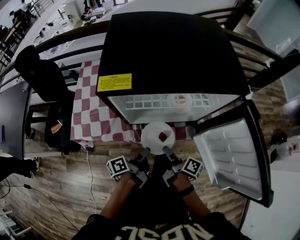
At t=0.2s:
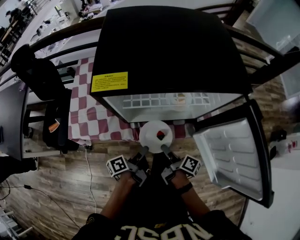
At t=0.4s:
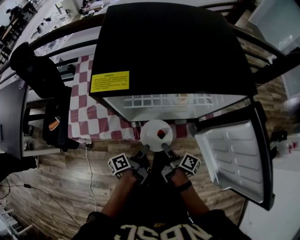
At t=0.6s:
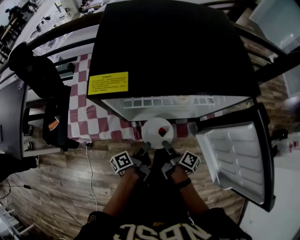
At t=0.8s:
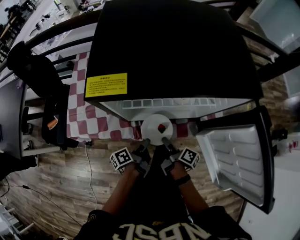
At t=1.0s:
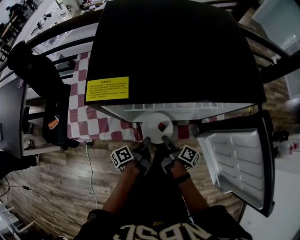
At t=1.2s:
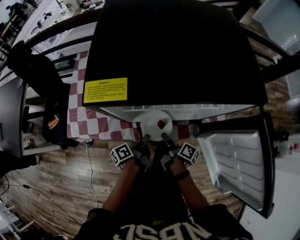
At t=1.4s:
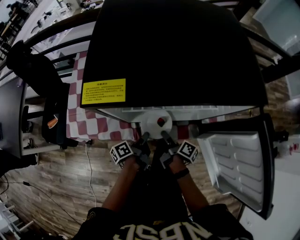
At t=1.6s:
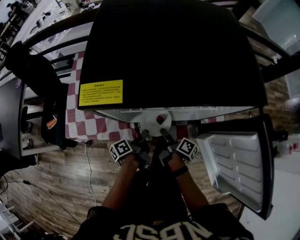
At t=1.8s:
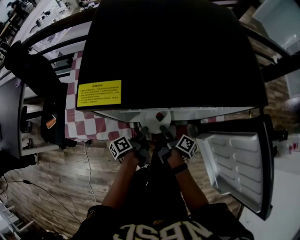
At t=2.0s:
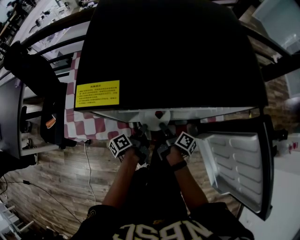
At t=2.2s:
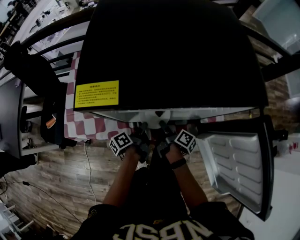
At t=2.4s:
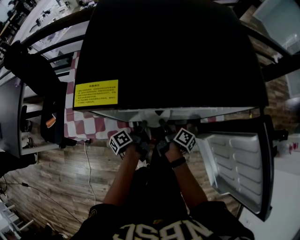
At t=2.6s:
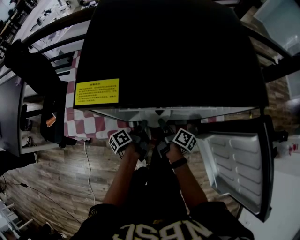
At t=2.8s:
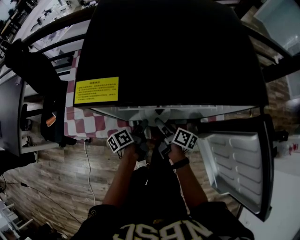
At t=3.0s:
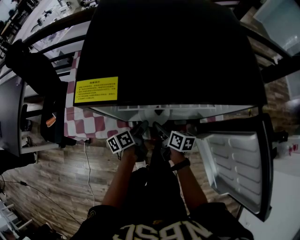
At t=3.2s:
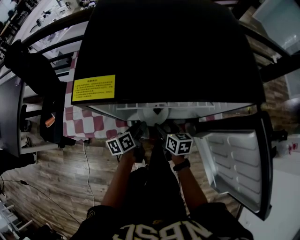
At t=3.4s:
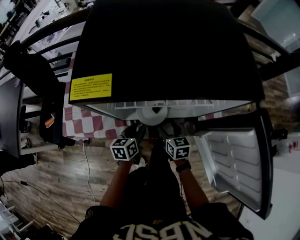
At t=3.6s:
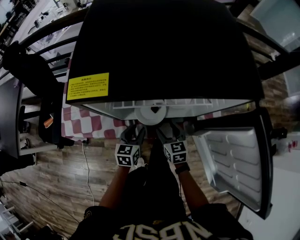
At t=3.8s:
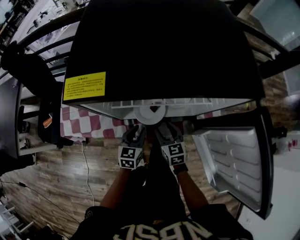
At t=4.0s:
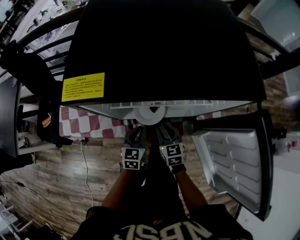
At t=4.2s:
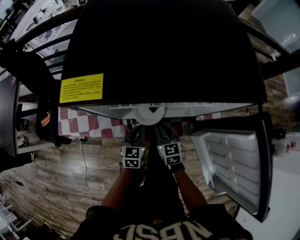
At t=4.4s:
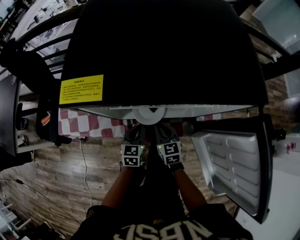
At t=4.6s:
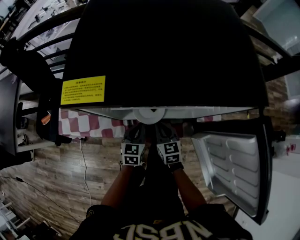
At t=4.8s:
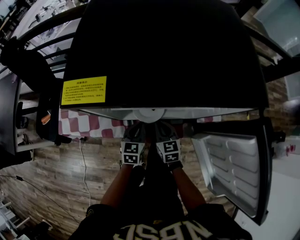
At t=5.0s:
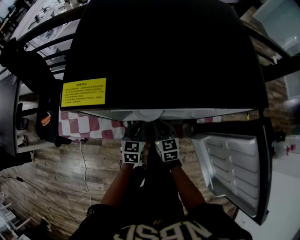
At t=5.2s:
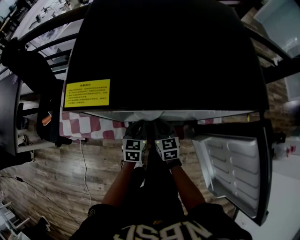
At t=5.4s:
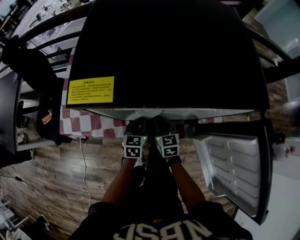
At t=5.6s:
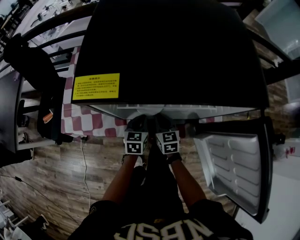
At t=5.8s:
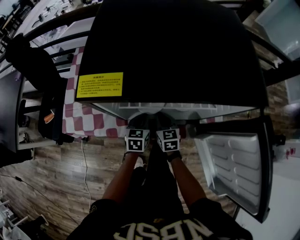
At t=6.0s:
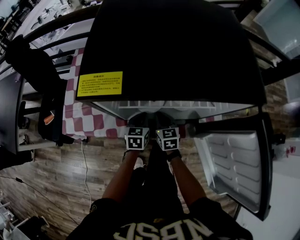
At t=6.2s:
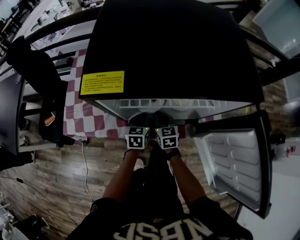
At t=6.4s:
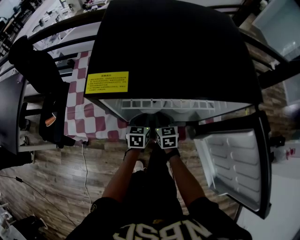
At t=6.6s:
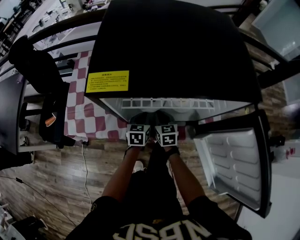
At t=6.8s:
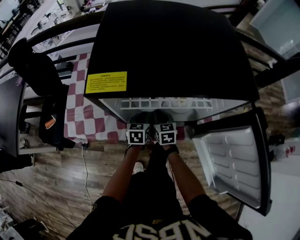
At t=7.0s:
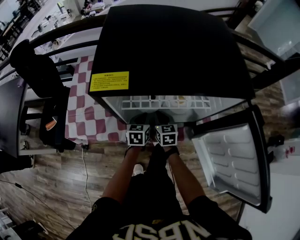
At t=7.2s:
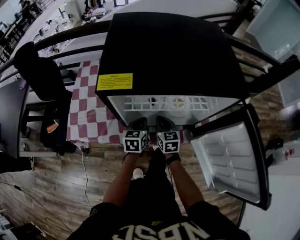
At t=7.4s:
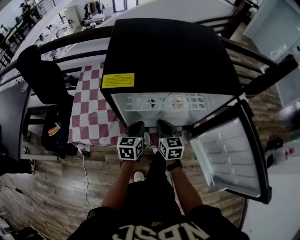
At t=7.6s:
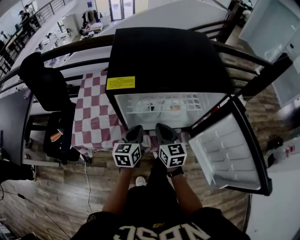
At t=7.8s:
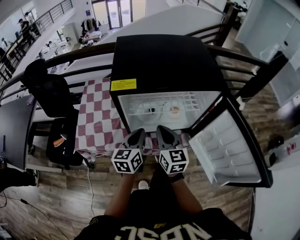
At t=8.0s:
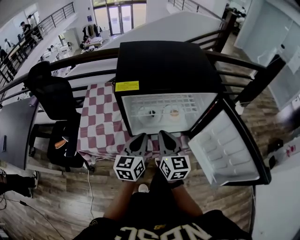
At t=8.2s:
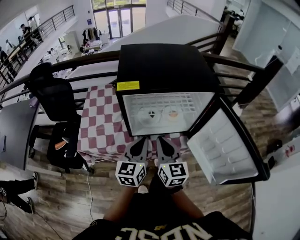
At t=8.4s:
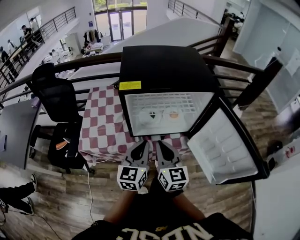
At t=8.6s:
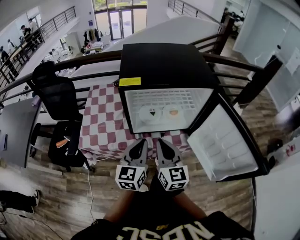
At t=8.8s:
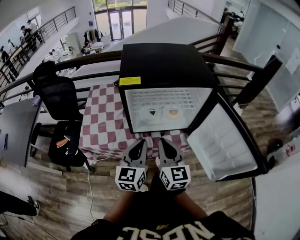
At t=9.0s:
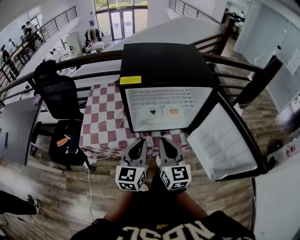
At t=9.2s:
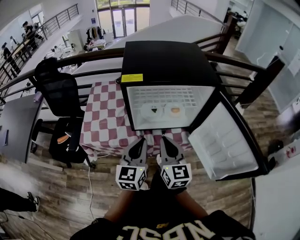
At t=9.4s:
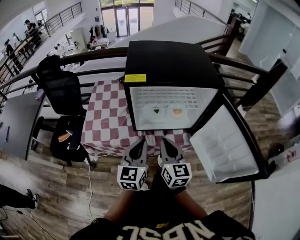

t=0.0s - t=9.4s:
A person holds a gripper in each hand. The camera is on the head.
t=0.0s - t=1.6s: The right gripper is displaced forward and downward by roughly 15 cm; the left gripper shifts about 15 cm downward and forward.
t=1.6s - t=3.2s: The left gripper rotates approximately 30 degrees, and opens its fingers. The right gripper rotates around the line of its fingers by approximately 50 degrees, counterclockwise from behind, and opens up.
t=3.2s - t=4.8s: The right gripper turns by roughly 30 degrees, and closes up; the left gripper rolls clockwise, seen from behind, by about 50 degrees, and closes its fingers.
t=4.8s - t=6.2s: The right gripper ends up about 5 cm from where it was.
t=6.2s - t=7.8s: Both grippers move upward, about 25 cm. The right gripper swivels roughly 20 degrees. The left gripper rotates about 20 degrees.
t=7.8s - t=9.4s: The left gripper heads backward and upward, covering about 15 cm, while the right gripper is displaced backward by some 10 cm.

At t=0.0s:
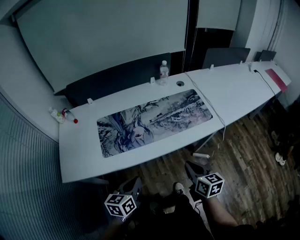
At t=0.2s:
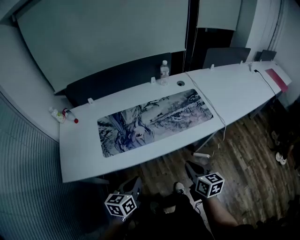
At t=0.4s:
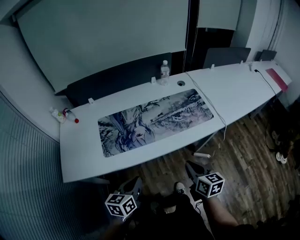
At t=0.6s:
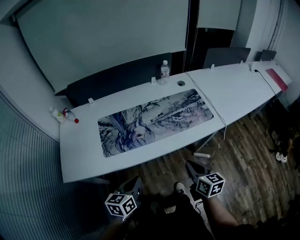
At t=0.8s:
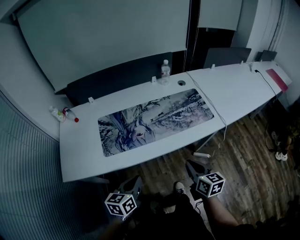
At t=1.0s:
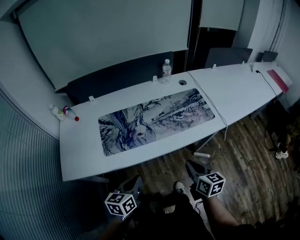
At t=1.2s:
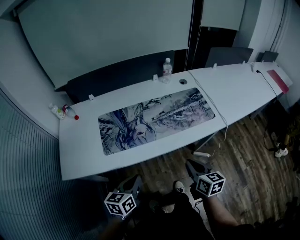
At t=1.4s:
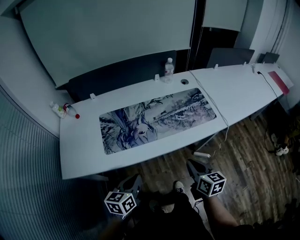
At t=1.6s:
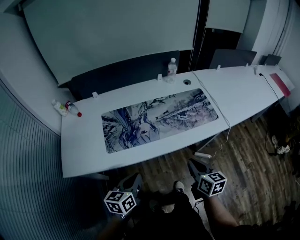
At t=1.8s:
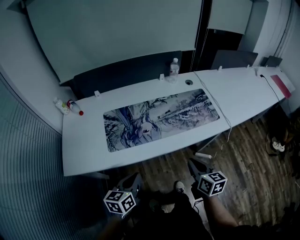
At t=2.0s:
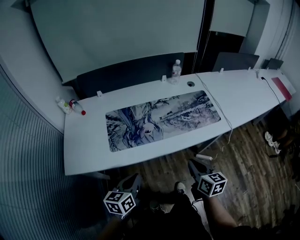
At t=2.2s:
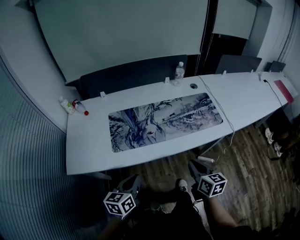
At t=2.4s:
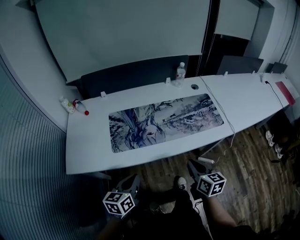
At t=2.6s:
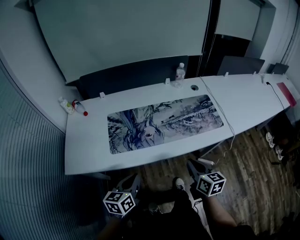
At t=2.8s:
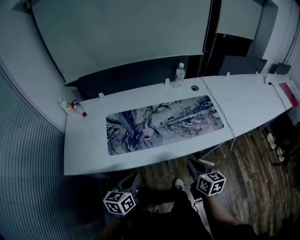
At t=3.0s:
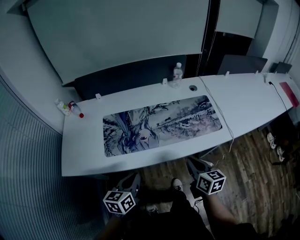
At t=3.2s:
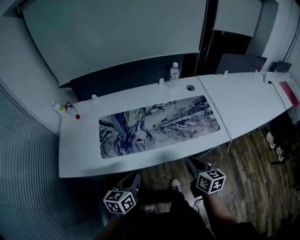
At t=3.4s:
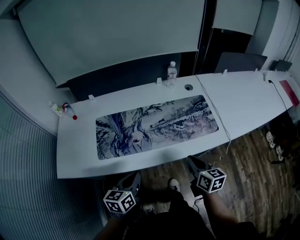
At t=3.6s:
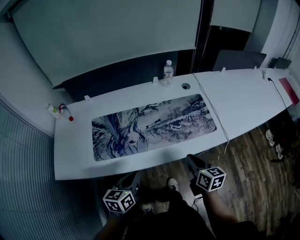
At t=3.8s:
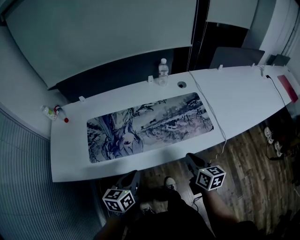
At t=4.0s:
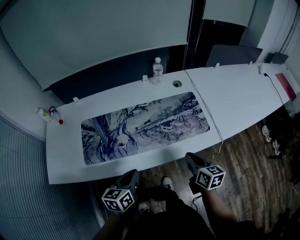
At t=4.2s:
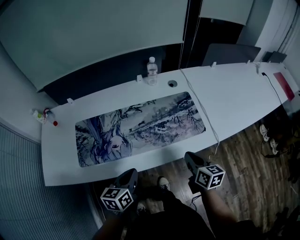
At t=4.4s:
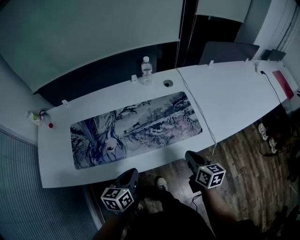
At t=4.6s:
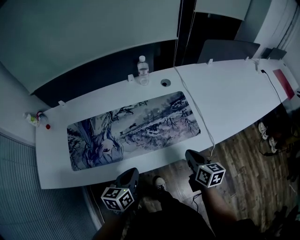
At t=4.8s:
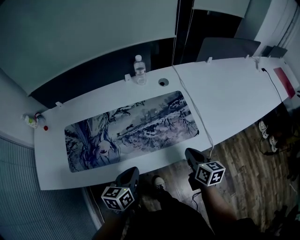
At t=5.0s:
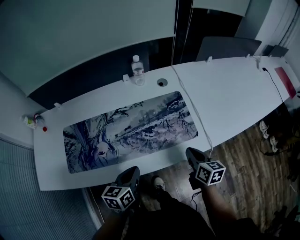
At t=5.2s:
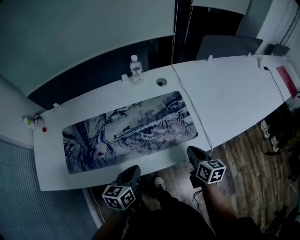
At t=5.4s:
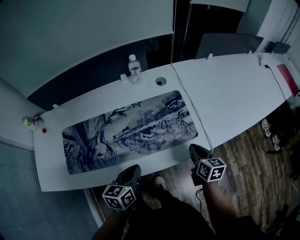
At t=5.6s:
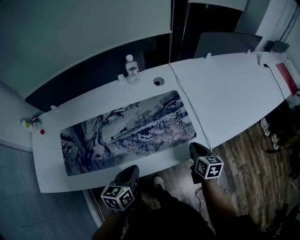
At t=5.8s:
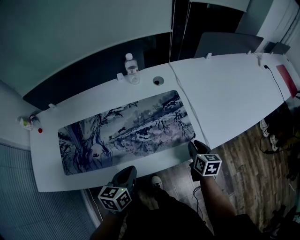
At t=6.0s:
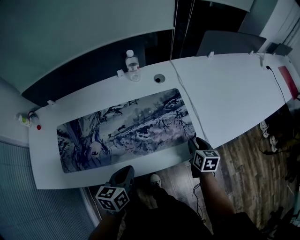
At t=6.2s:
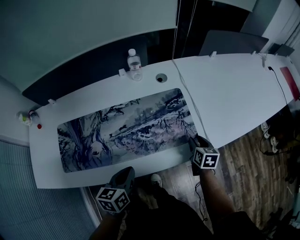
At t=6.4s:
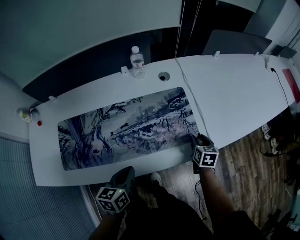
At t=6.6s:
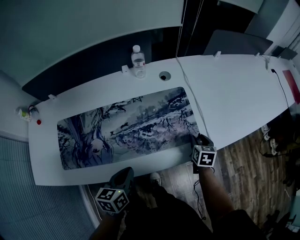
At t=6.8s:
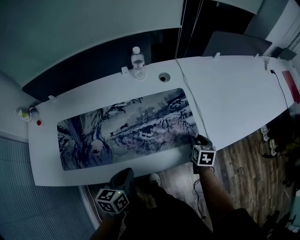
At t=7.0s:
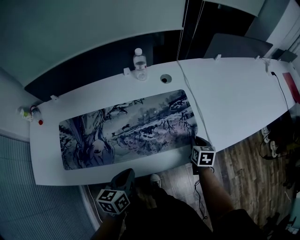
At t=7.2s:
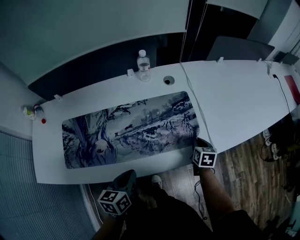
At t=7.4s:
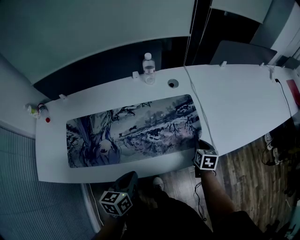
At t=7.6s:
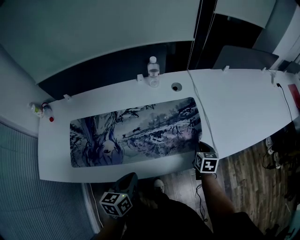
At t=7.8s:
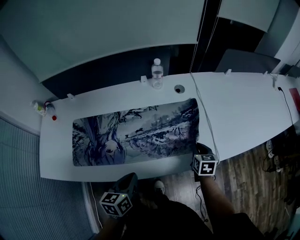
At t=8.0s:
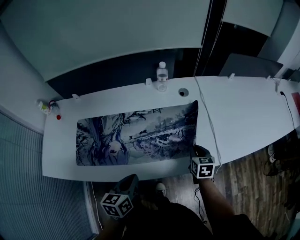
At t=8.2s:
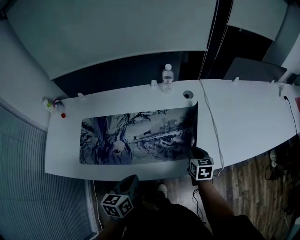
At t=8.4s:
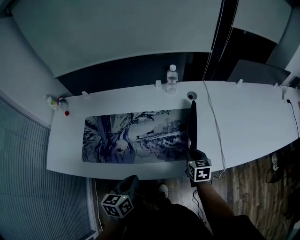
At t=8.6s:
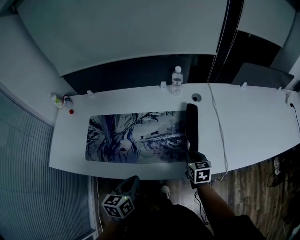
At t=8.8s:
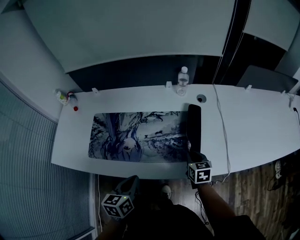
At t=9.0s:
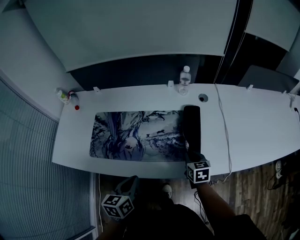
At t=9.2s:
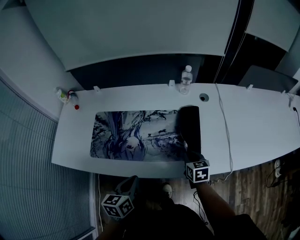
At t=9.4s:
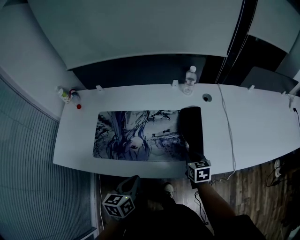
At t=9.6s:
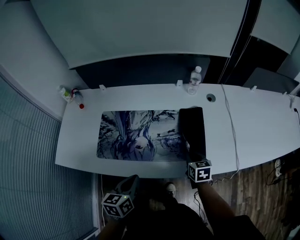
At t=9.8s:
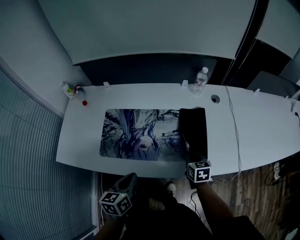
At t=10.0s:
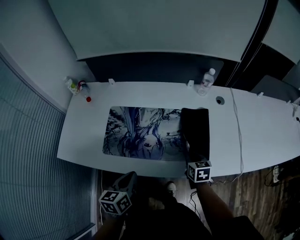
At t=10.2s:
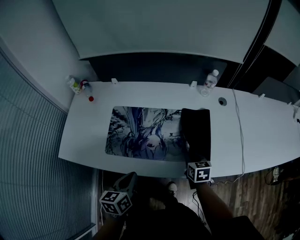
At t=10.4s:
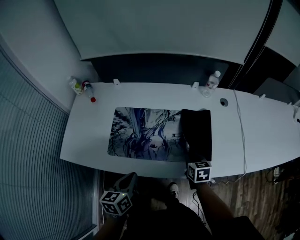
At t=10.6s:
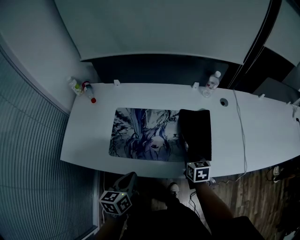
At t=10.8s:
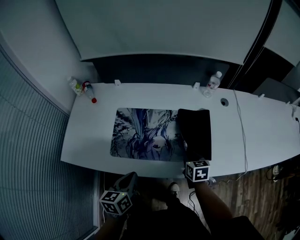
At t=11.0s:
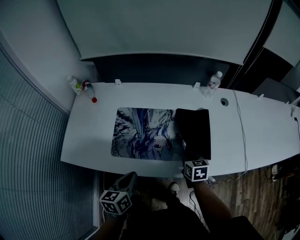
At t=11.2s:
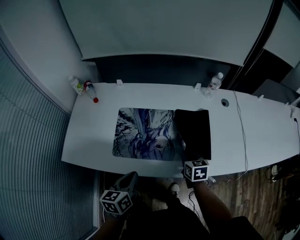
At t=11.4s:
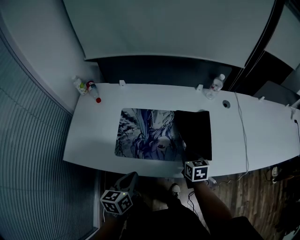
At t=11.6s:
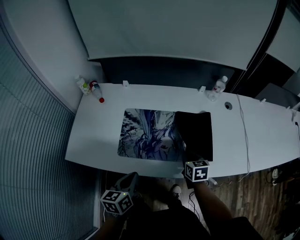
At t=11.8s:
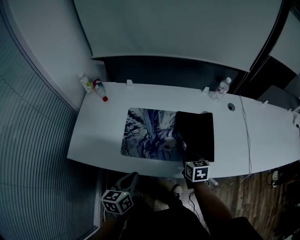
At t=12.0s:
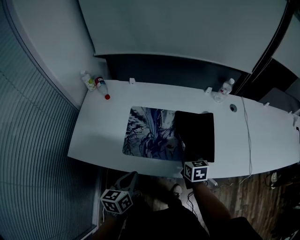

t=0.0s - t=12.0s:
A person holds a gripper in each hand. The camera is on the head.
t=0.0s - t=1.6s: The grippers move only a little.
t=1.6s - t=3.0s: The right gripper moves forward, about 5 cm.
t=3.0s - t=4.4s: Both grippers move to the right and forward, some 20 cm.
t=4.4s - t=6.0s: The right gripper moves forward, to the right and downward, approximately 20 cm, and opens. The left gripper travels forward and to the right by about 10 cm.
t=6.0s - t=7.6s: The right gripper closes its fingers.
t=7.6s - t=9.0s: The left gripper is displaced to the left by some 5 cm; the right gripper moves to the left, about 15 cm, and swivels roughly 20 degrees.
t=9.0s - t=10.4s: Both grippers move to the left, about 15 cm.
t=10.4s - t=12.0s: Both grippers travel together to the left, approximately 10 cm.

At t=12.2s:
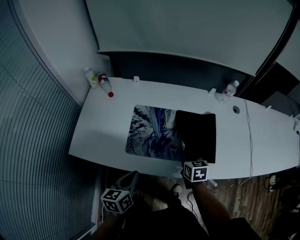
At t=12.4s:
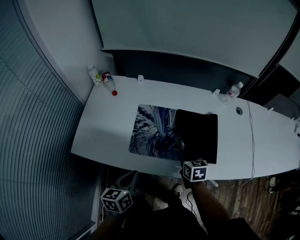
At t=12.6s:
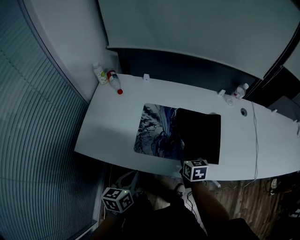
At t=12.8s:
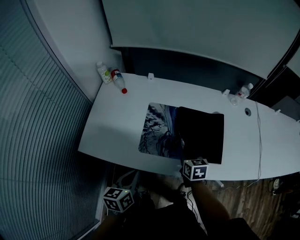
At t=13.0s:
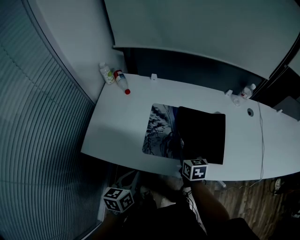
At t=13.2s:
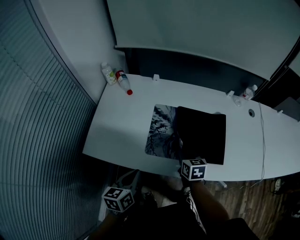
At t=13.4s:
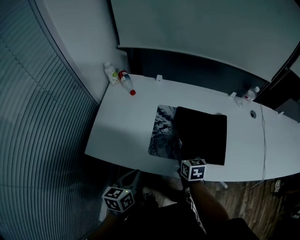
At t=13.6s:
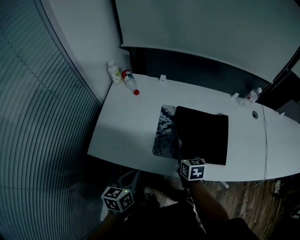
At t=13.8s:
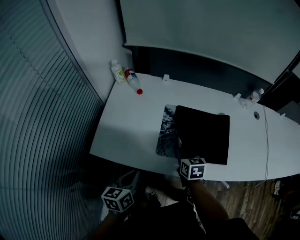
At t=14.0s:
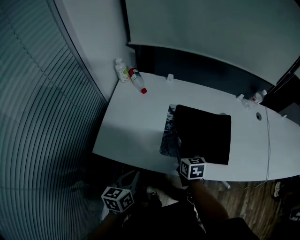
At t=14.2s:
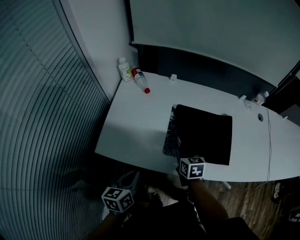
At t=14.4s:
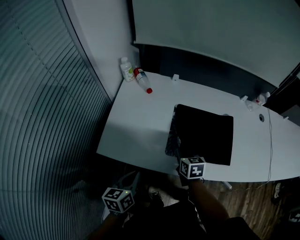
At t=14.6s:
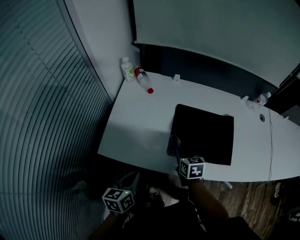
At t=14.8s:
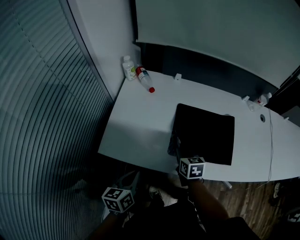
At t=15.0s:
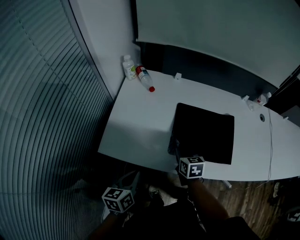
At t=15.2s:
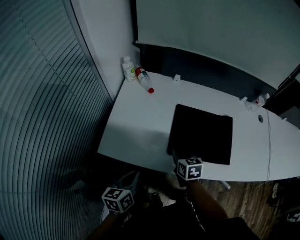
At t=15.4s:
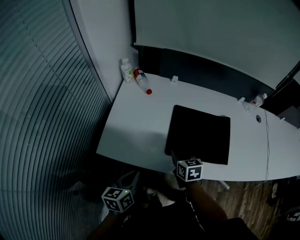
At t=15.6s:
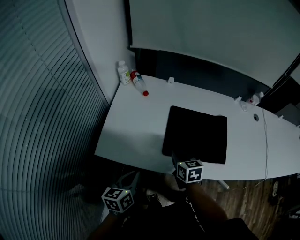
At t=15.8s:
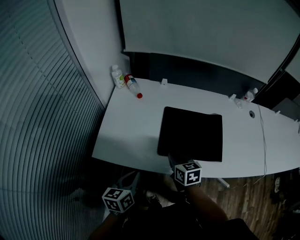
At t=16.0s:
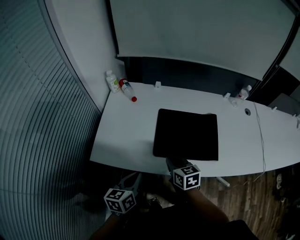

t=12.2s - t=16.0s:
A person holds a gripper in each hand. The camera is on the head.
t=12.2s - t=13.4s: The grippers both shift to the left by approximately 10 cm.
t=13.4s - t=14.8s: Both grippers travel together to the left, approximately 10 cm.
t=14.8s - t=16.0s: The left gripper is displaced to the right by about 5 cm. The right gripper goes about 10 cm upward and backward.
